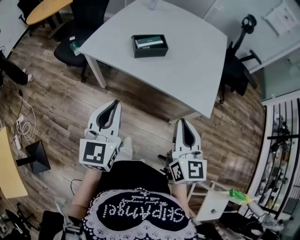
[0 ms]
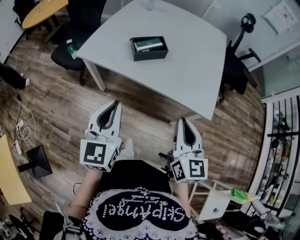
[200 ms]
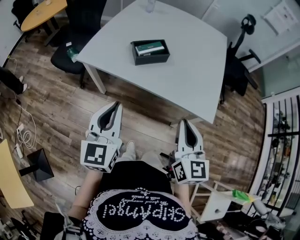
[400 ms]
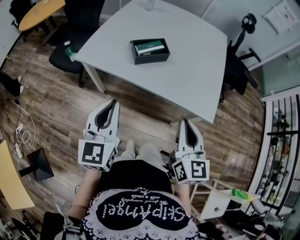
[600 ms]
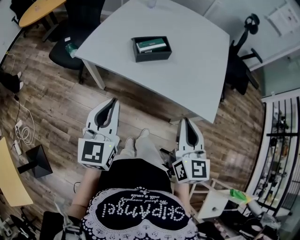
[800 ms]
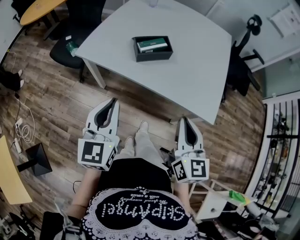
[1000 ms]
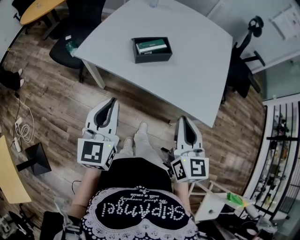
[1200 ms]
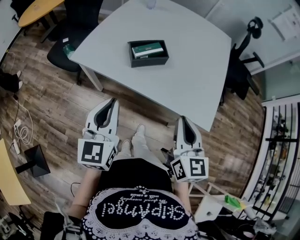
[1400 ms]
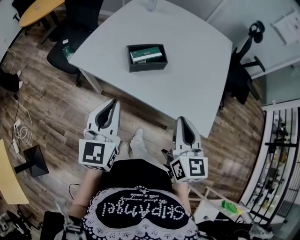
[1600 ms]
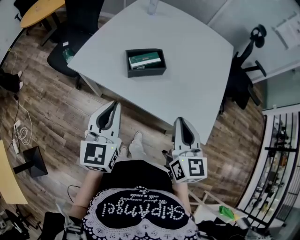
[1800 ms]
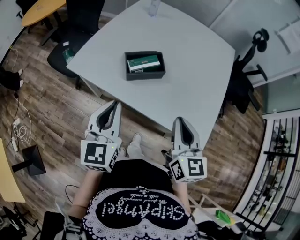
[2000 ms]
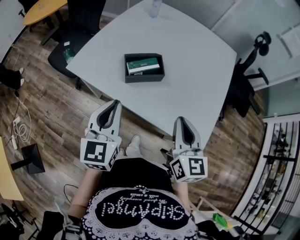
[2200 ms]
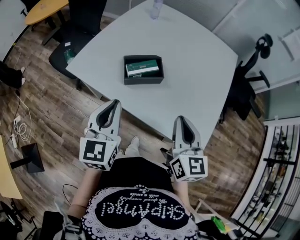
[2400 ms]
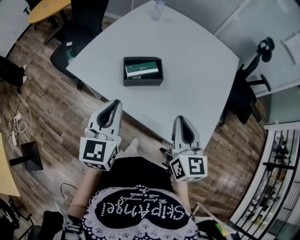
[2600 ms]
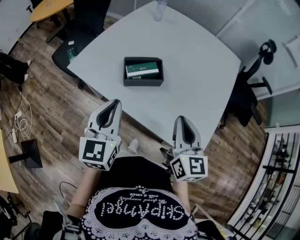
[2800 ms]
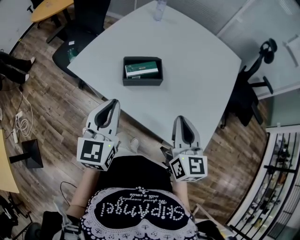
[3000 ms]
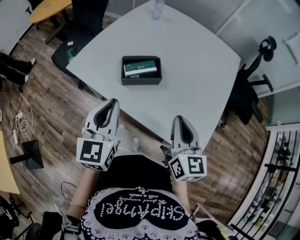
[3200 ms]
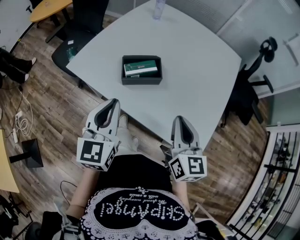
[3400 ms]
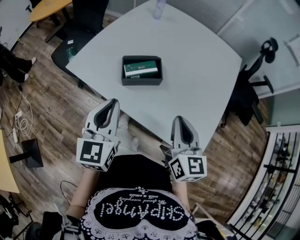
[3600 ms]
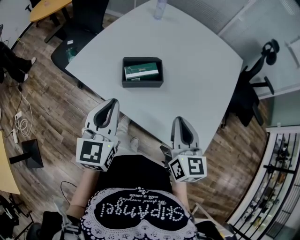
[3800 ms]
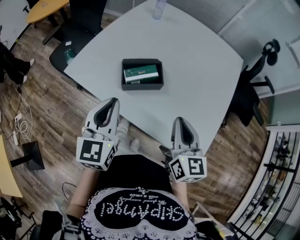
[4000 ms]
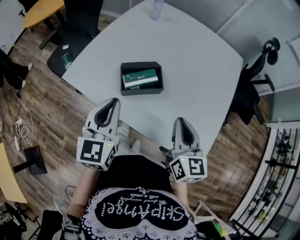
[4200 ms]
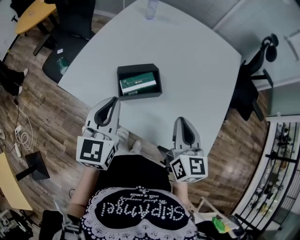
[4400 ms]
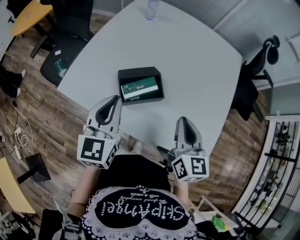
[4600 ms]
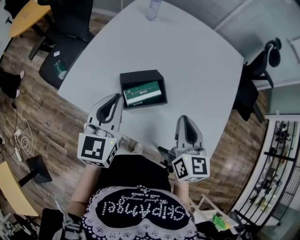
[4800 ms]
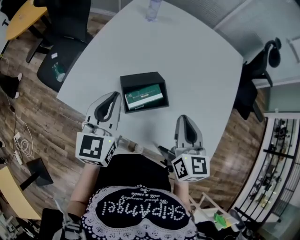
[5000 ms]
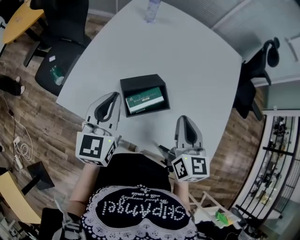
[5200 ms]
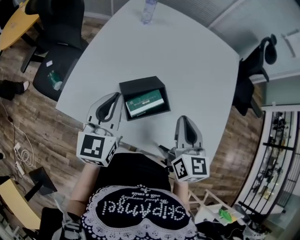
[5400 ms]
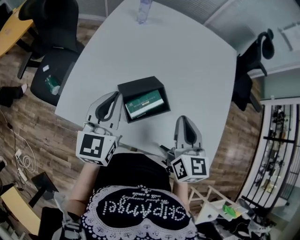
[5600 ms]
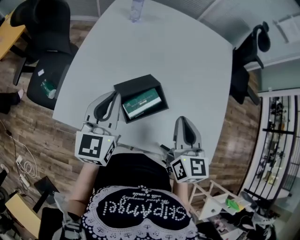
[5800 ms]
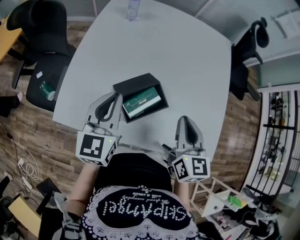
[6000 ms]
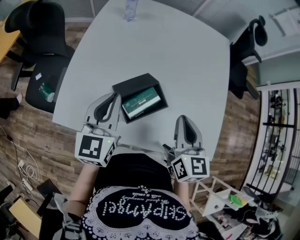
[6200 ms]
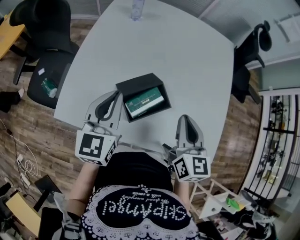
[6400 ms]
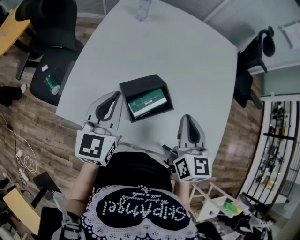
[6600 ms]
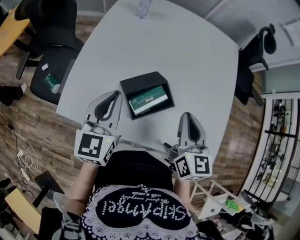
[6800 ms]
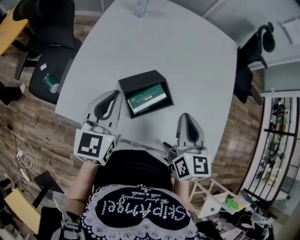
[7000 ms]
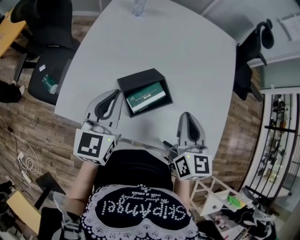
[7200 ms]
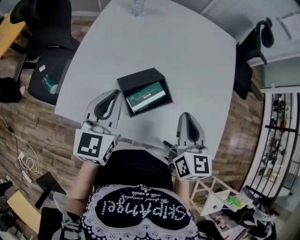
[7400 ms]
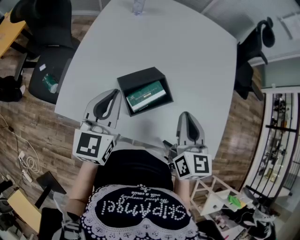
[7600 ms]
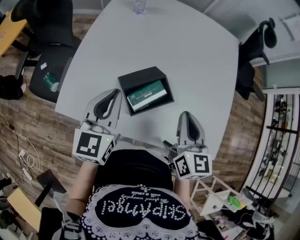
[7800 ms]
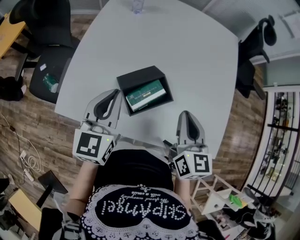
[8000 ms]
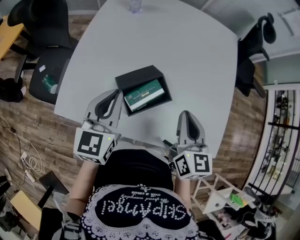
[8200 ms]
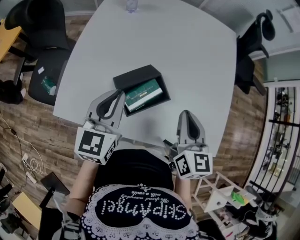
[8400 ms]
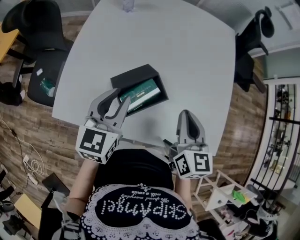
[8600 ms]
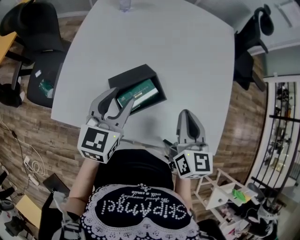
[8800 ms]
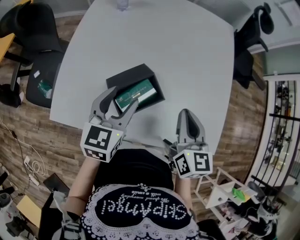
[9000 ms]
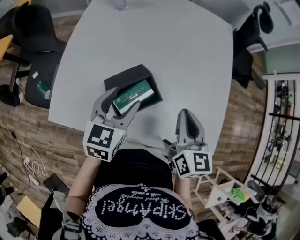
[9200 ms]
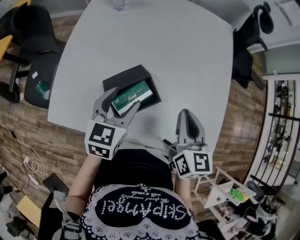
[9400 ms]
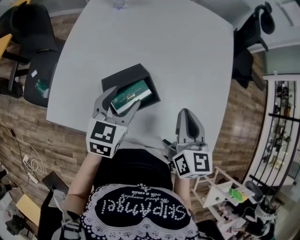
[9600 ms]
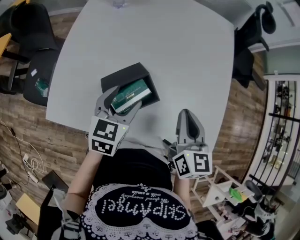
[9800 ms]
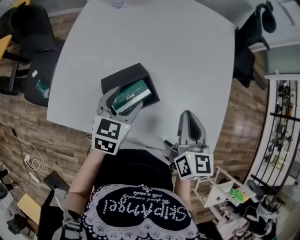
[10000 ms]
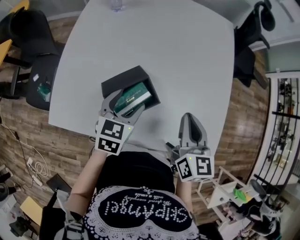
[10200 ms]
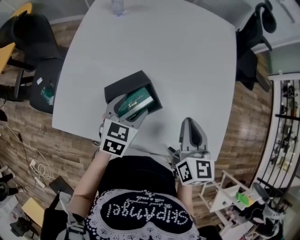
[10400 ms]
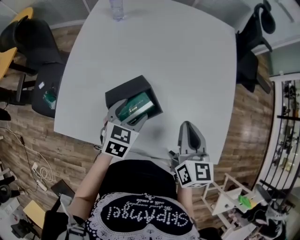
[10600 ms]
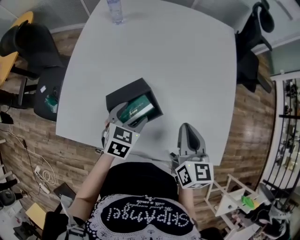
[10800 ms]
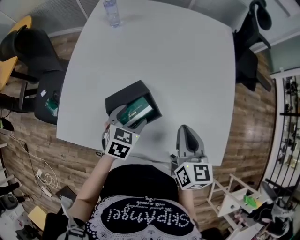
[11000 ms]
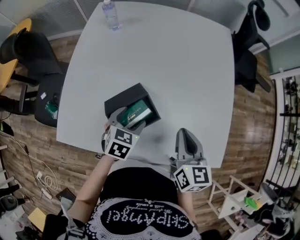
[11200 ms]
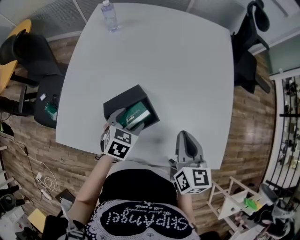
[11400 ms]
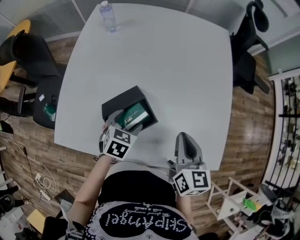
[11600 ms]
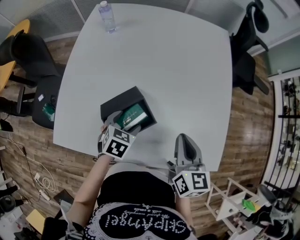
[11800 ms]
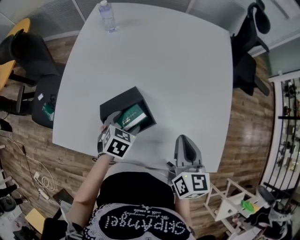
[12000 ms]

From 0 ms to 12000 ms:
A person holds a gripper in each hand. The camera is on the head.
From 0 ms to 1600 ms: Both grippers travel together forward, some 15 cm.
From 1600 ms to 3000 ms: The left gripper heads forward, covering approximately 10 cm, while the right gripper travels forward and to the right by about 10 cm.
From 3000 ms to 4400 ms: The two grippers go about 10 cm forward.
From 4400 ms to 6000 ms: The right gripper goes roughly 10 cm forward and to the left; the left gripper moves forward, about 15 cm.
From 6000 ms to 7600 ms: The grippers stay close to where they were, moving slightly.
From 7600 ms to 9000 ms: The left gripper shifts about 5 cm to the right, and opens its fingers.
From 9000 ms to 10400 ms: The left gripper goes approximately 10 cm downward.
From 10400 ms to 12000 ms: The left gripper moves downward, about 10 cm.

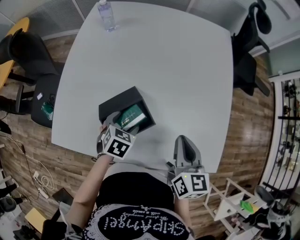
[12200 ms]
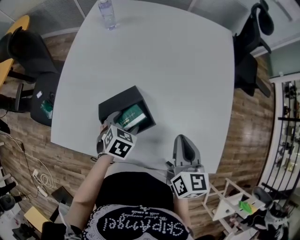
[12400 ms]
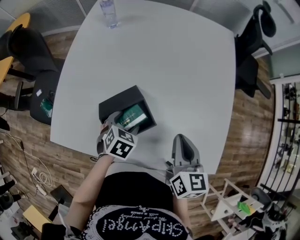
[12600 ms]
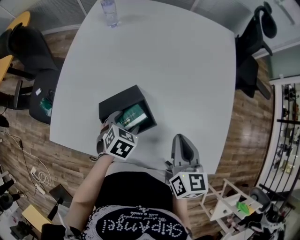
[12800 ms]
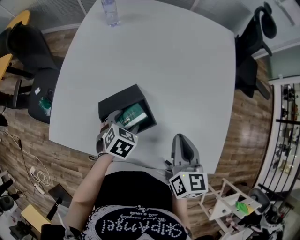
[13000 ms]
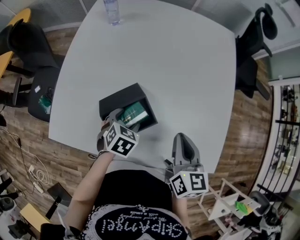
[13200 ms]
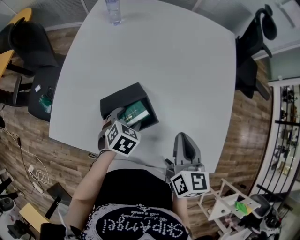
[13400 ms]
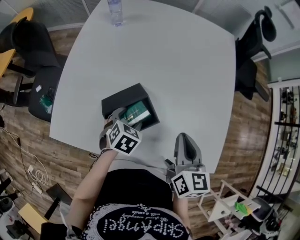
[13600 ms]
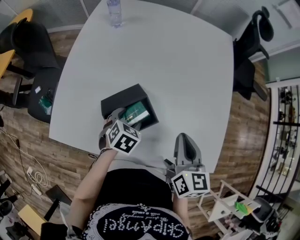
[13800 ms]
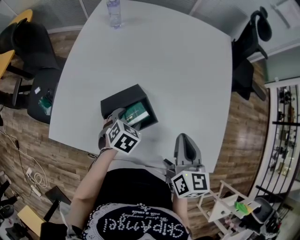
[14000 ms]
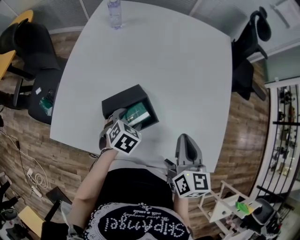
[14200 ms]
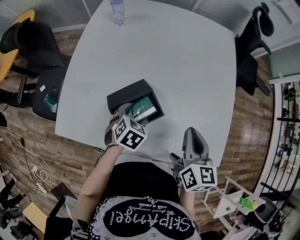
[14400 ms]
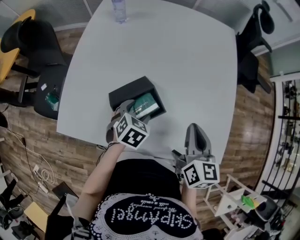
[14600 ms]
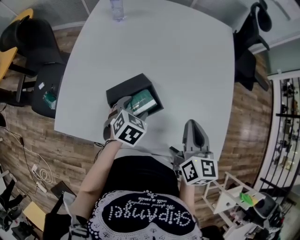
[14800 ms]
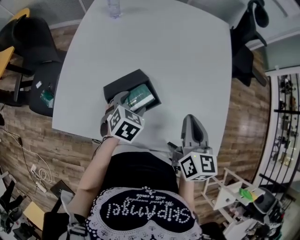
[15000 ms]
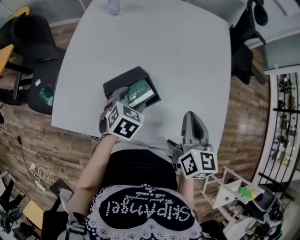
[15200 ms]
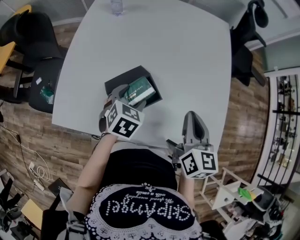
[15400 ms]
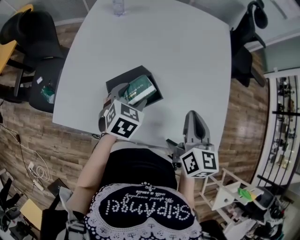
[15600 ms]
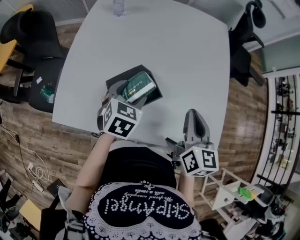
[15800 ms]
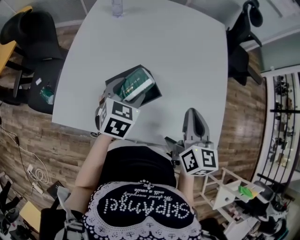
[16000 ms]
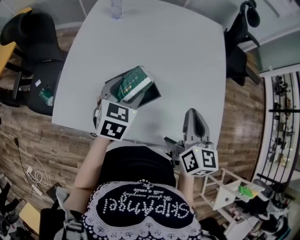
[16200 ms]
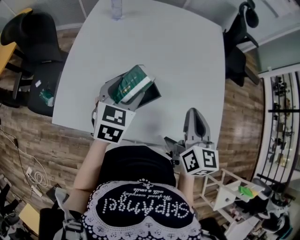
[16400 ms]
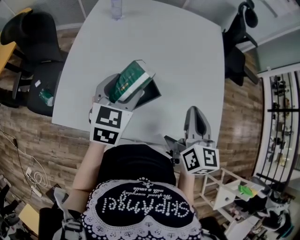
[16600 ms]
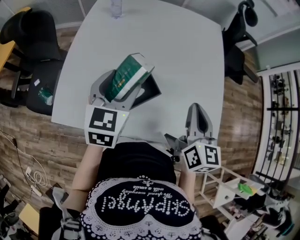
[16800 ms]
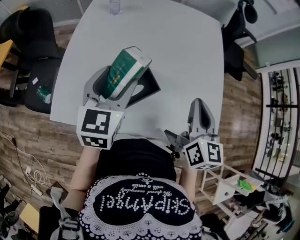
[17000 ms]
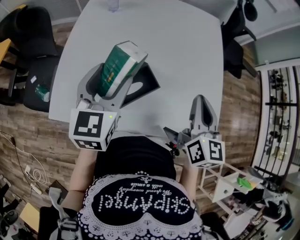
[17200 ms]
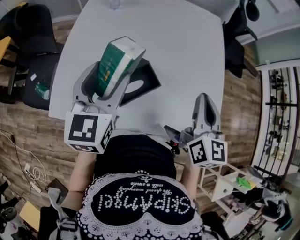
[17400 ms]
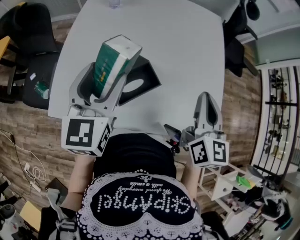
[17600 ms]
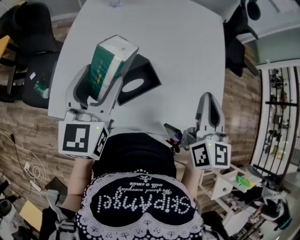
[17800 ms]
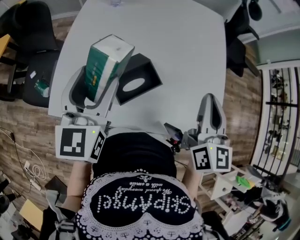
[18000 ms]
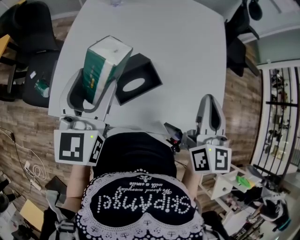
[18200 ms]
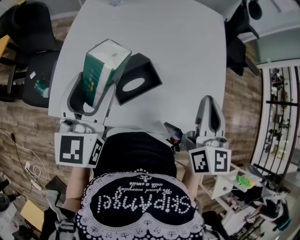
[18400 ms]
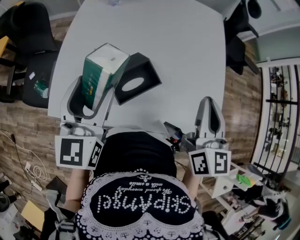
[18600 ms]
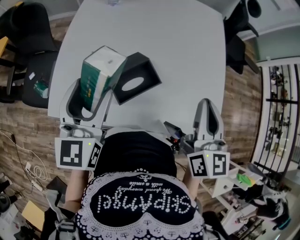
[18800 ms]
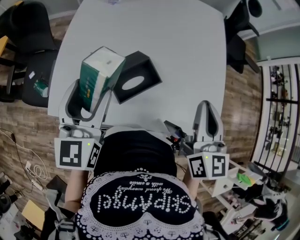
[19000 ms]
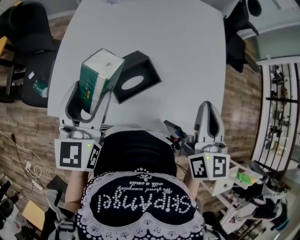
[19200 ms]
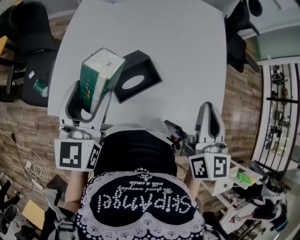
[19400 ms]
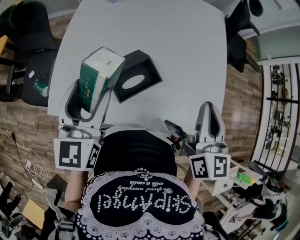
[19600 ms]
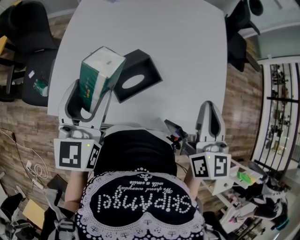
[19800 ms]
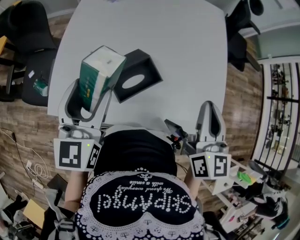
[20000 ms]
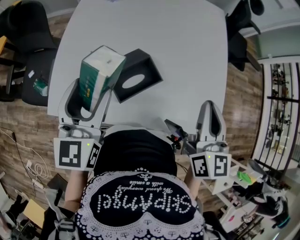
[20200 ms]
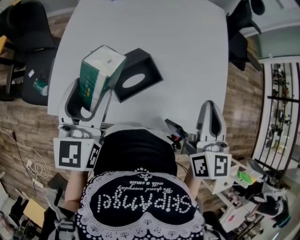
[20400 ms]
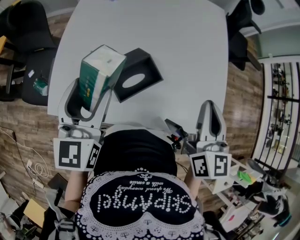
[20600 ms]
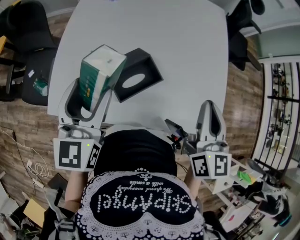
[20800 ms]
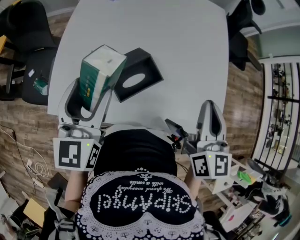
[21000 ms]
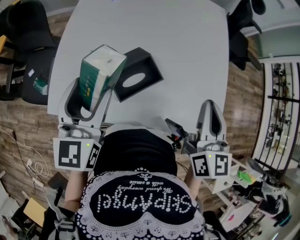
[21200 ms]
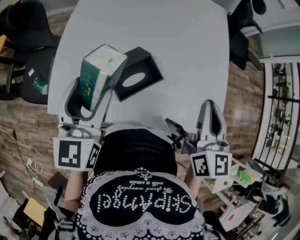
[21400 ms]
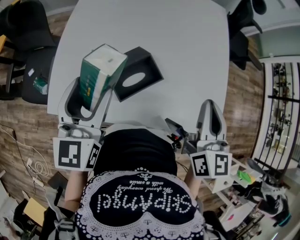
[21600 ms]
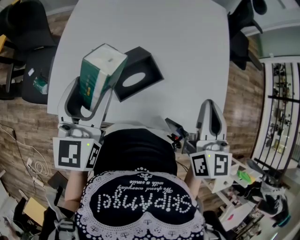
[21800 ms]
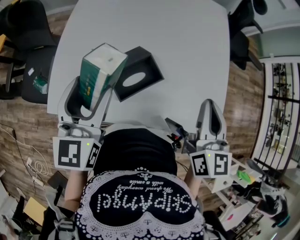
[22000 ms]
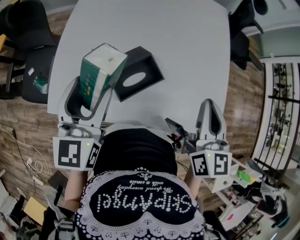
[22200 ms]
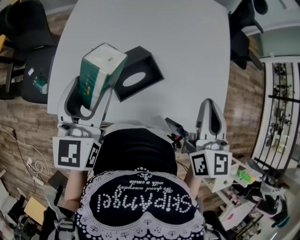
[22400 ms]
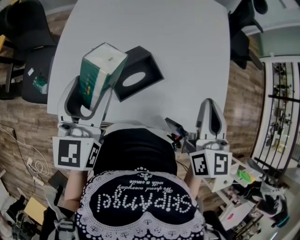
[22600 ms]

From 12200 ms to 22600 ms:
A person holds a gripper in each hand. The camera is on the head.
From 12200 ms to 13600 ms: The grippers move only a little.
From 13600 ms to 15200 ms: The left gripper moves upward, roughly 5 cm.
From 15200 ms to 16600 ms: The left gripper is displaced upward by roughly 15 cm, and changes its angle by some 30 degrees.
From 16600 ms to 18200 ms: The right gripper travels upward by about 5 cm. The left gripper travels upward and to the left by approximately 10 cm, and turns by roughly 20 degrees.
From 18200 ms to 19600 ms: The grippers stay close to where they were, moving slightly.
From 19600 ms to 22600 ms: The two grippers keep their place.

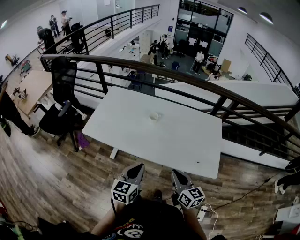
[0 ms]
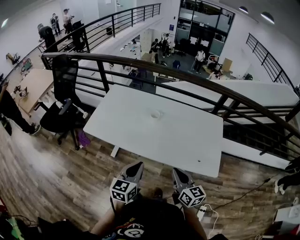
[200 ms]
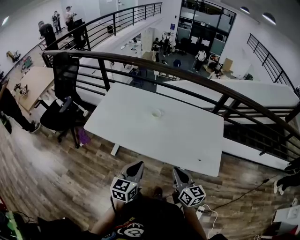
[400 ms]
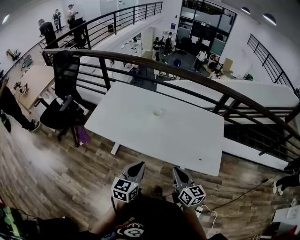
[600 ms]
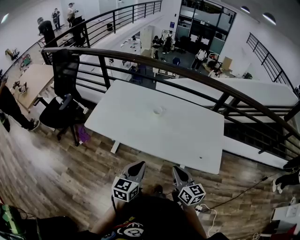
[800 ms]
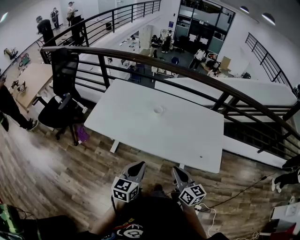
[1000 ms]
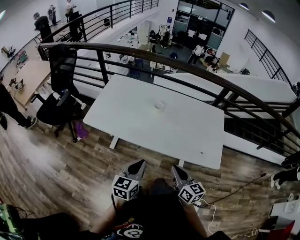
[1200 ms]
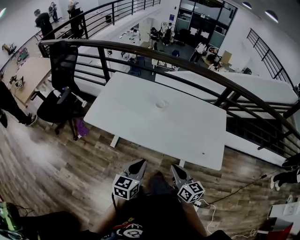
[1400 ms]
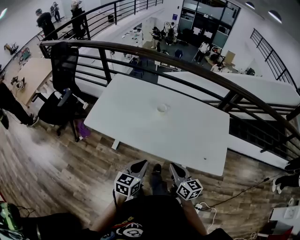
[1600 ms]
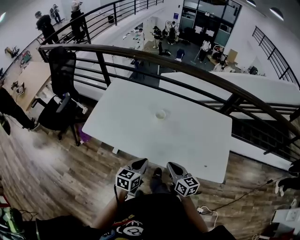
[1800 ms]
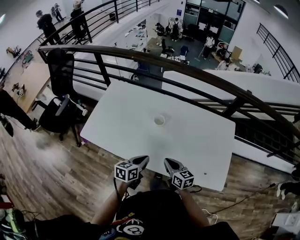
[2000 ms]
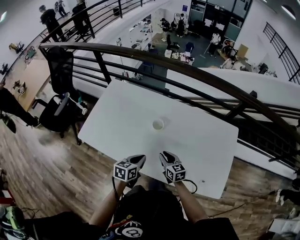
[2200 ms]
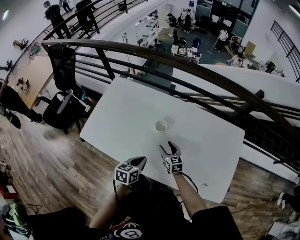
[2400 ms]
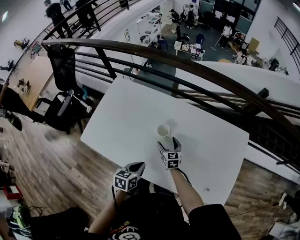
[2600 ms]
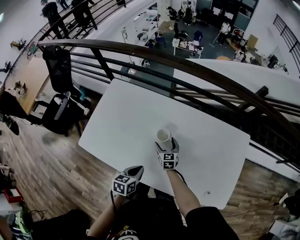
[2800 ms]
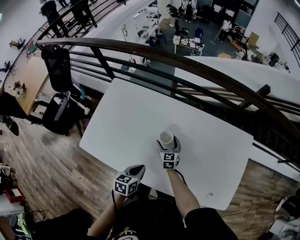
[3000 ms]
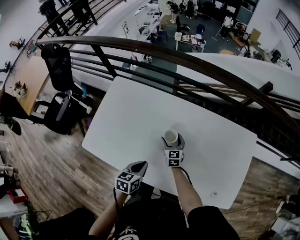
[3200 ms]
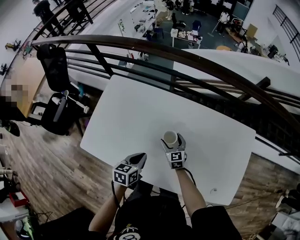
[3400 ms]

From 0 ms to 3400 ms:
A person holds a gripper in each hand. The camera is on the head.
From 0 ms to 1600 ms: The left gripper shifts approximately 5 cm downward. Meanwhile the right gripper heads downward and to the left, covering about 10 cm.
From 1600 ms to 3400 ms: The right gripper is displaced forward and downward by about 50 cm, turns by approximately 20 degrees, and opens up. Meanwhile the left gripper moves forward, about 30 cm, and swivels some 20 degrees.
